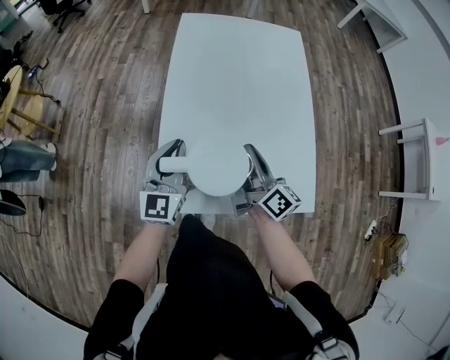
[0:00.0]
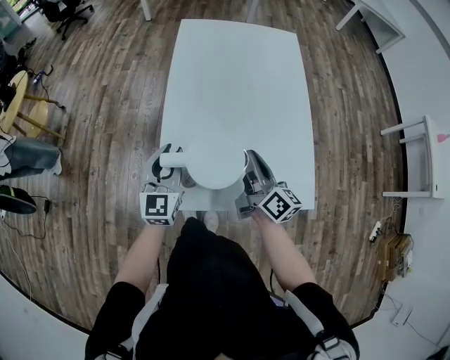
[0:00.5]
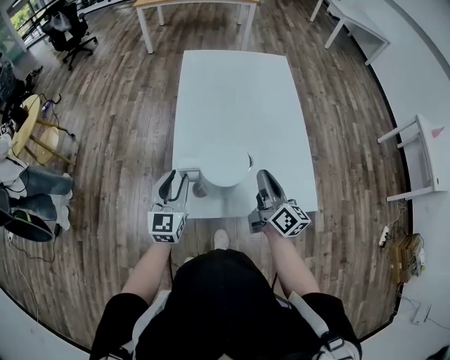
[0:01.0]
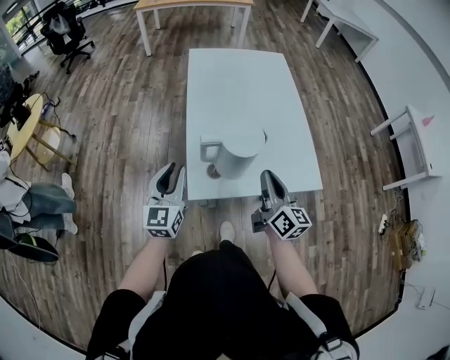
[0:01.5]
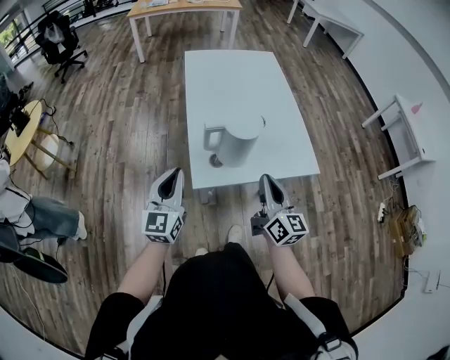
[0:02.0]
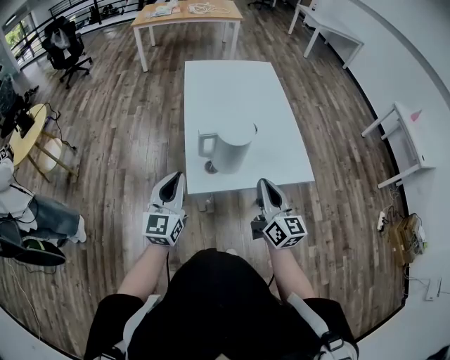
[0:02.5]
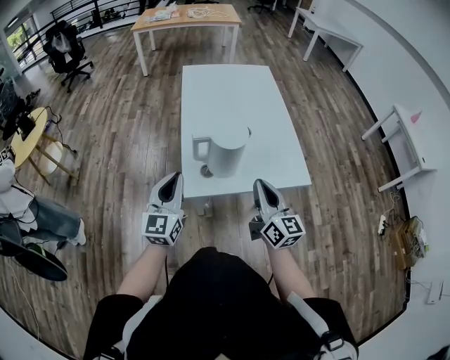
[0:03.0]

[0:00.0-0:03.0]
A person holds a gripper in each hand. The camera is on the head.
0:00.0 to 0:01.5: The left gripper ends up roughly 15 cm from where it was, and opens its fingers.
0:01.5 to 0:03.0: The left gripper ends up some 10 cm from where it was, and closes.

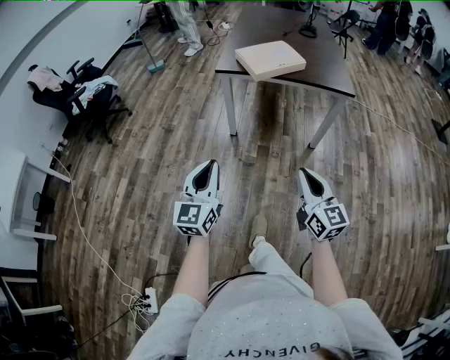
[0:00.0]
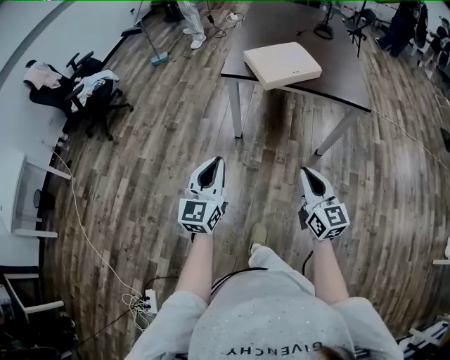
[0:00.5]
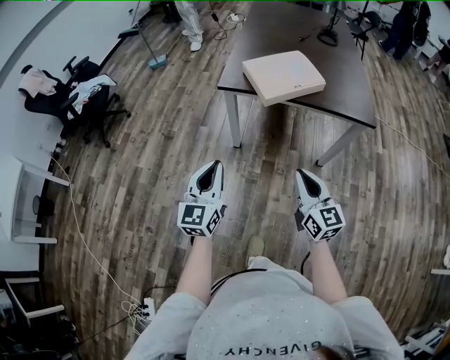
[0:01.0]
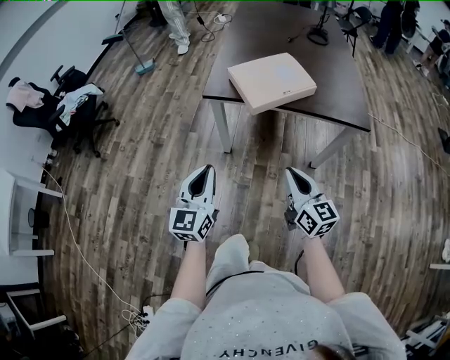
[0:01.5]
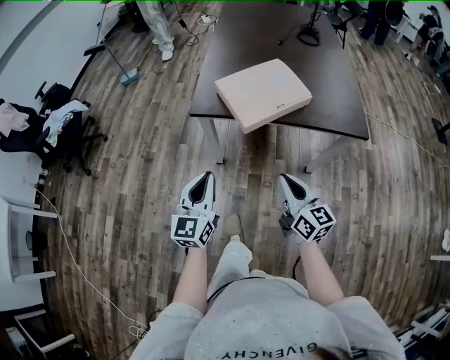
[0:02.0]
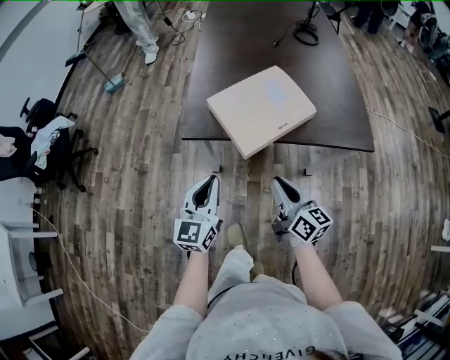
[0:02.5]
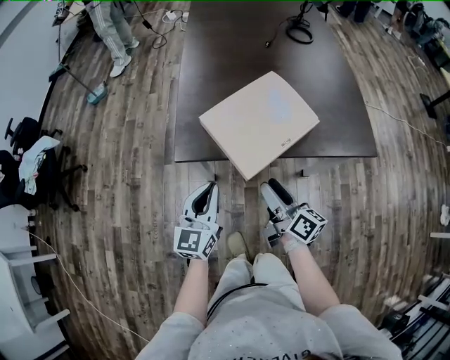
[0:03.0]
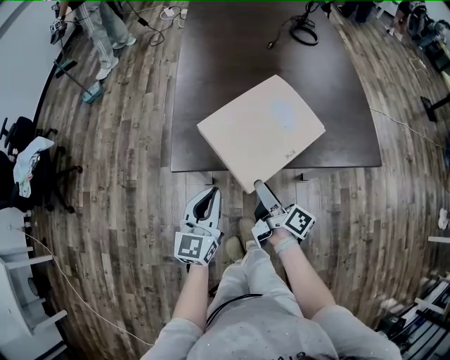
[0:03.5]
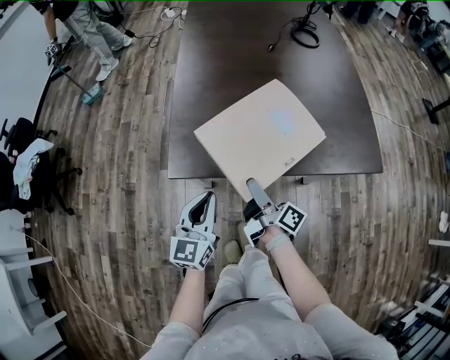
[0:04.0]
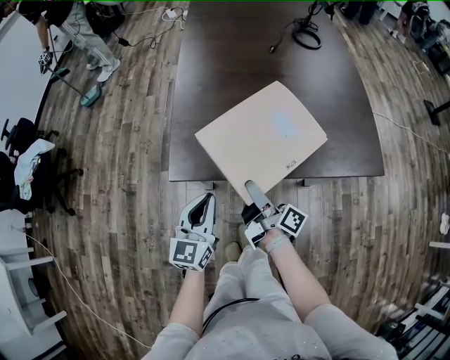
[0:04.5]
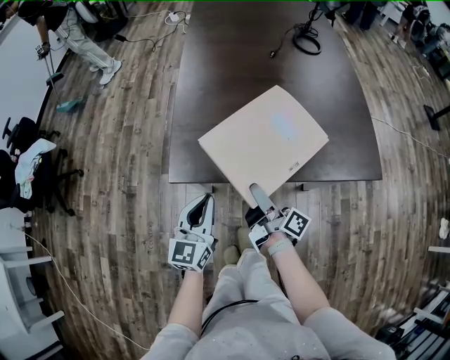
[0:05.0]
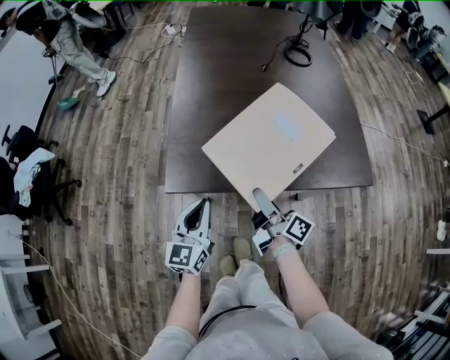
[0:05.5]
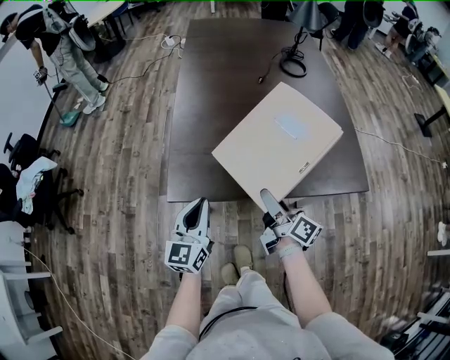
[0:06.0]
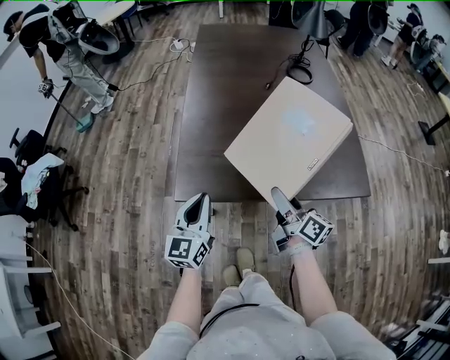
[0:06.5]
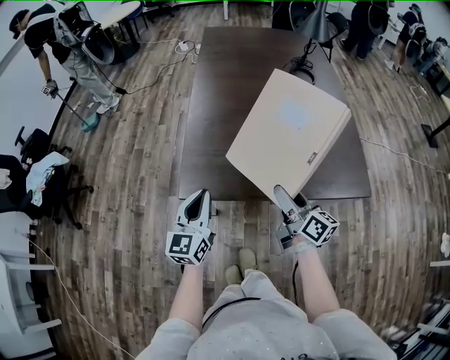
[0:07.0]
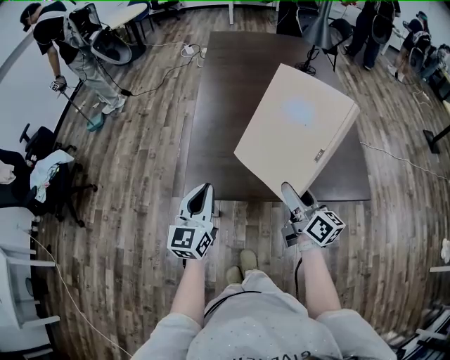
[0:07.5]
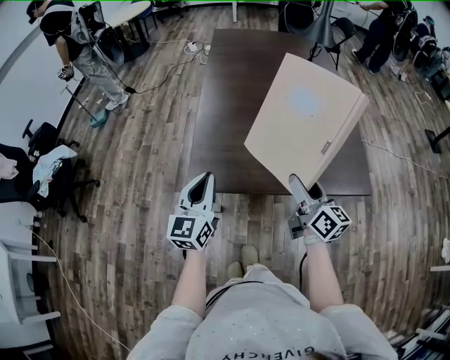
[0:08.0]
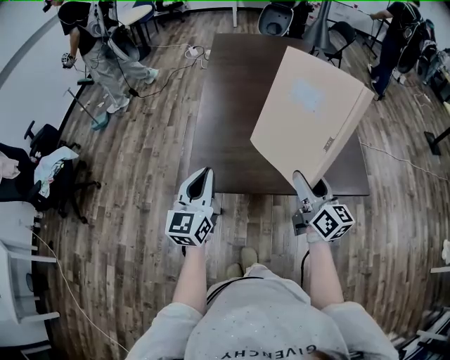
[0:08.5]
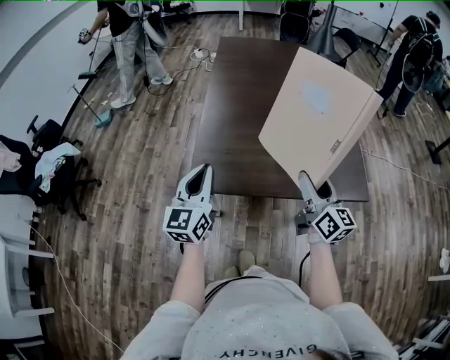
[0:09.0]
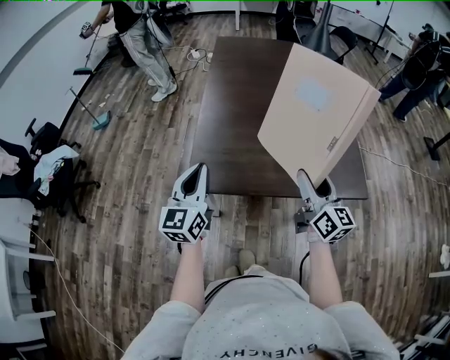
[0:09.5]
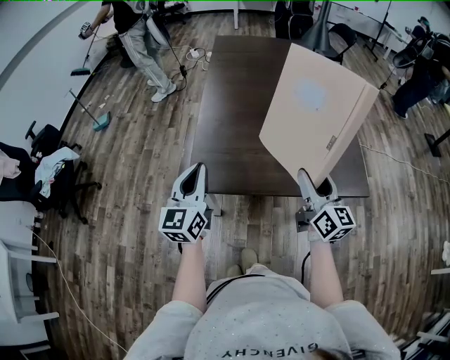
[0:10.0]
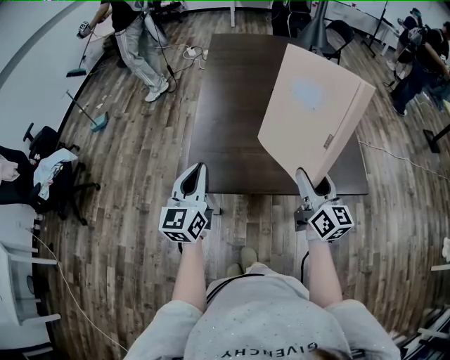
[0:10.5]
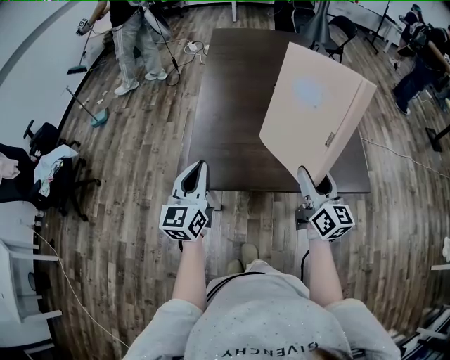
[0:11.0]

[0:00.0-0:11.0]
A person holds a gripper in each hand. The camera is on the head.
0:00.0 to 0:02.0: Both grippers are carried forward, roughly 40 cm.
0:02.0 to 0:03.5: The right gripper goes some 30 cm forward and downward, rotates around the line of its fingers by approximately 50 degrees, clockwise from behind, and opens; the left gripper moves forward, some 25 cm.
0:03.5 to 0:05.5: The right gripper shifts by some 5 cm, and closes up.
0:05.5 to 0:07.5: The right gripper shifts some 15 cm upward and to the right, and rotates about 30 degrees; the left gripper goes some 10 cm upward.
0:07.5 to 0:09.0: Both grippers move upward, roughly 5 cm.
0:09.0 to 0:11.0: The grippers stay close to where they were, moving slightly.

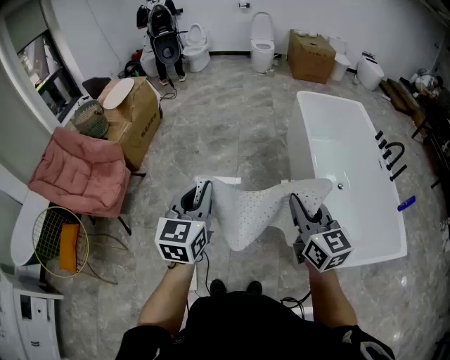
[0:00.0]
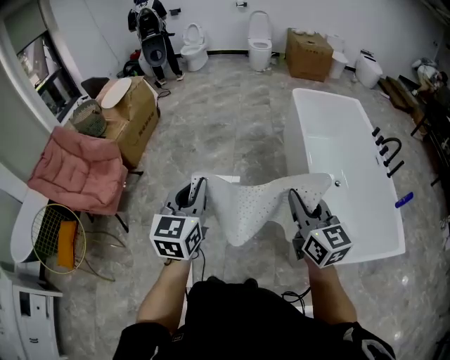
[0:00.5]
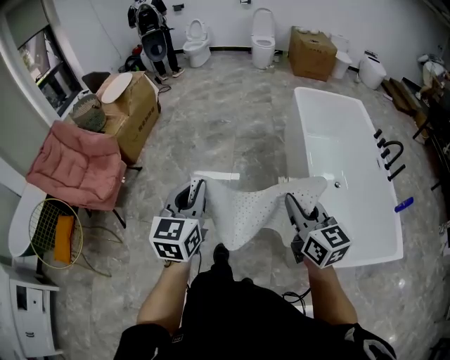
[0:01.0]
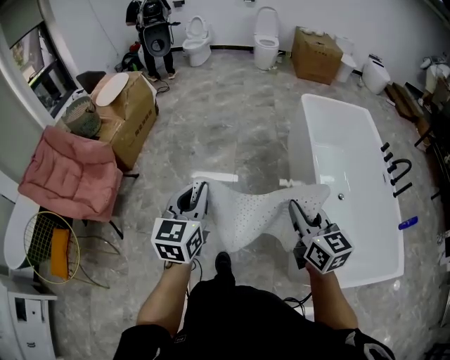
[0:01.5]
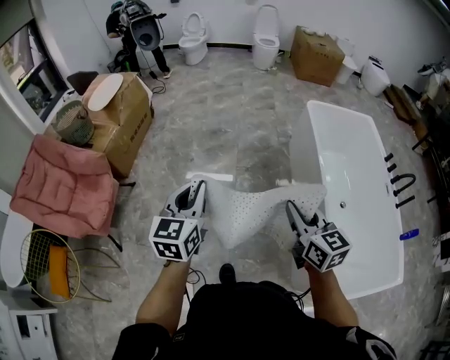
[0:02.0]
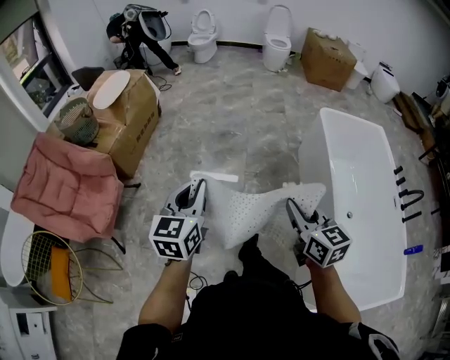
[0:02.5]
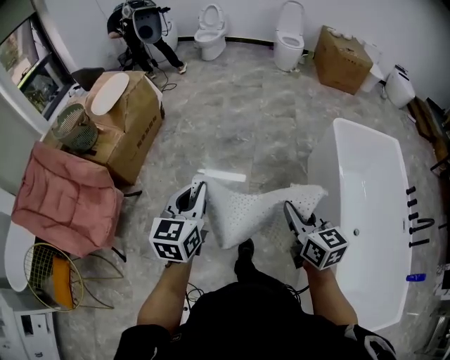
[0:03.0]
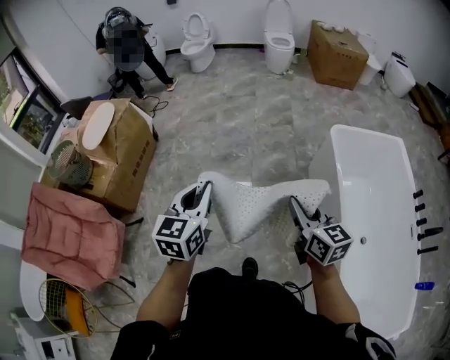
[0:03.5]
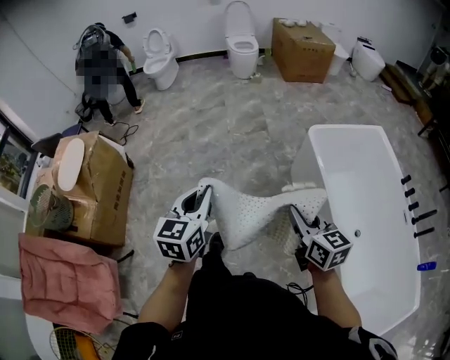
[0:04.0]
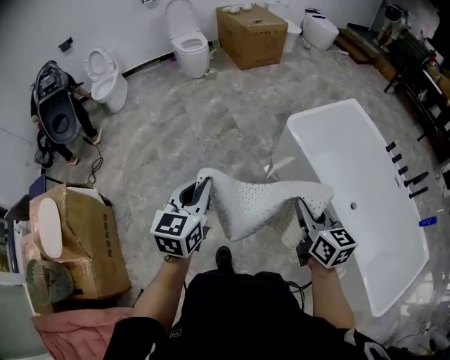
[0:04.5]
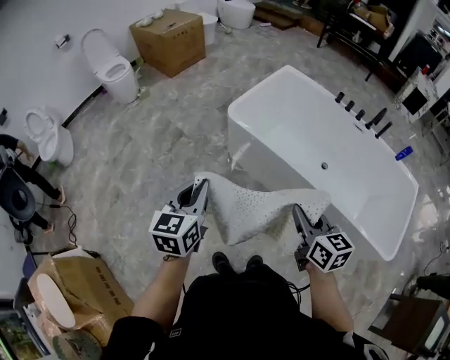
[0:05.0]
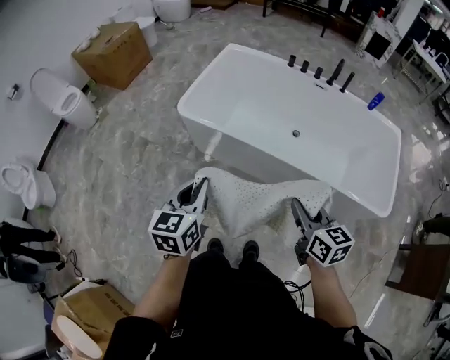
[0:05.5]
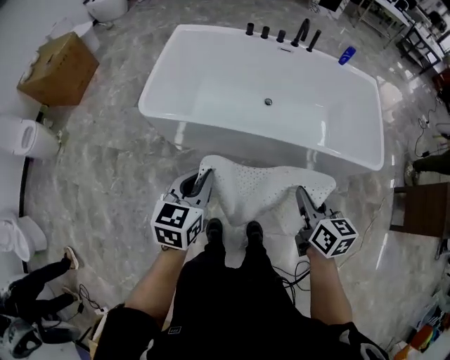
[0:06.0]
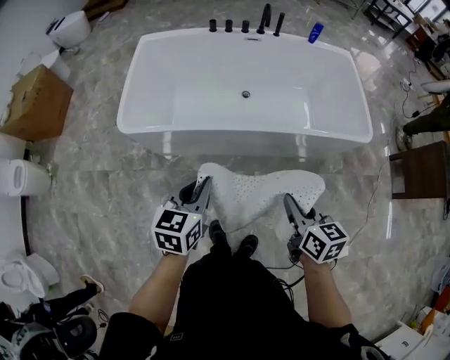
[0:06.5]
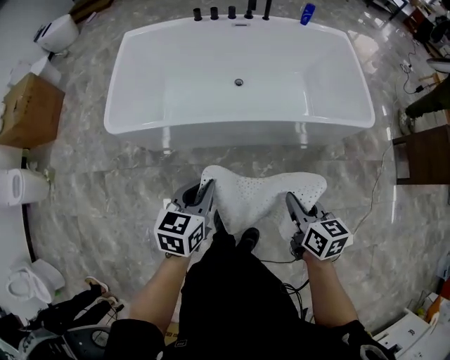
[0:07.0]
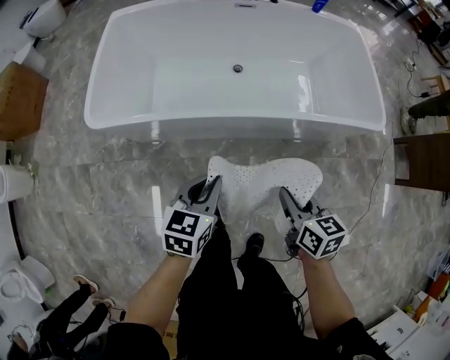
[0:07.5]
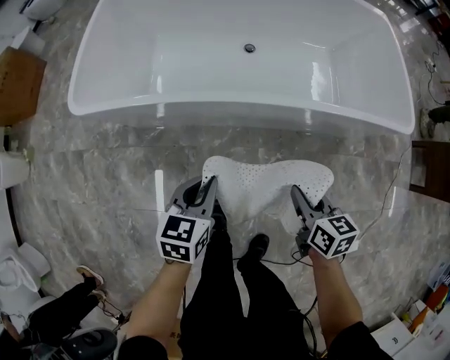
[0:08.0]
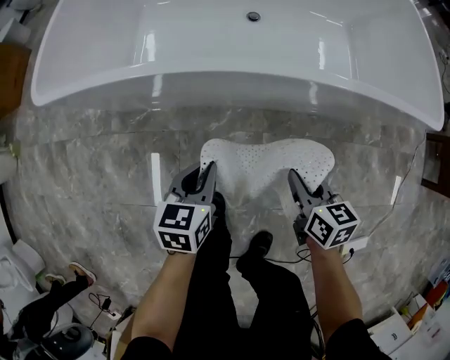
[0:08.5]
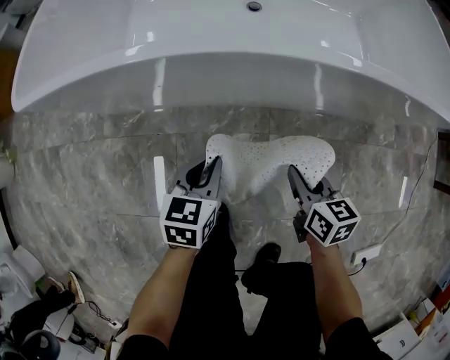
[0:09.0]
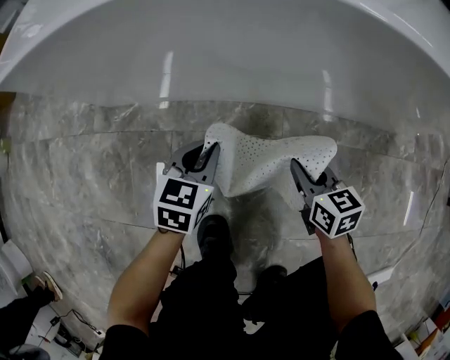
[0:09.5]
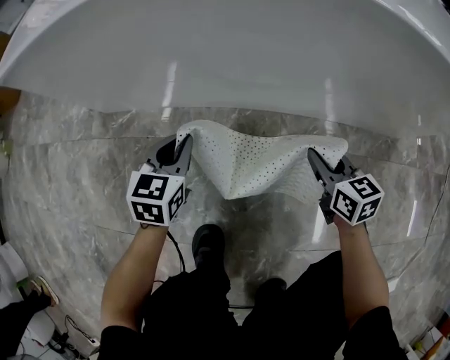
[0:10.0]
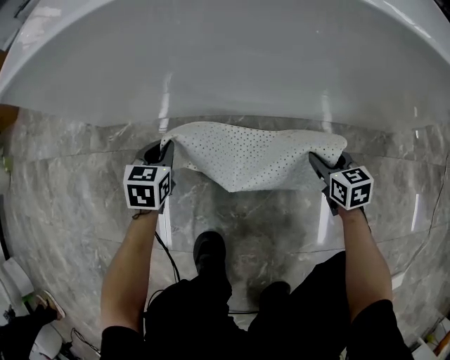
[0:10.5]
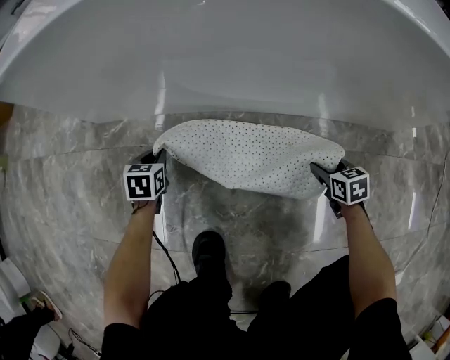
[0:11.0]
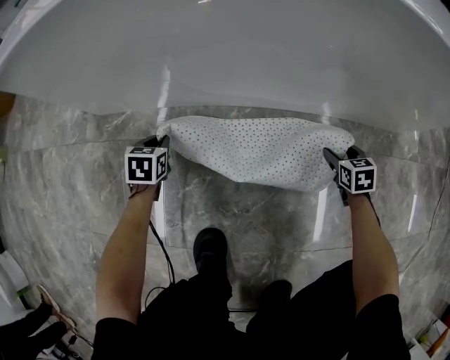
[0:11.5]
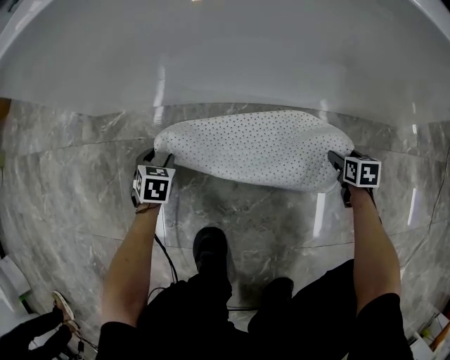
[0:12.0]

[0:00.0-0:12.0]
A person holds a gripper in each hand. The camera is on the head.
0:00.0 to 0:02.0: Both grippers move forward, some 25 cm.
0:02.0 to 0:04.0: The pair of grippers is taken forward, approximately 50 cm.
0:04.0 to 0:06.0: The left gripper shifts by roughly 35 cm, and changes its angle by roughly 80 degrees, while the right gripper shifts by about 20 cm, and changes its angle by about 80 degrees.
0:06.0 to 0:08.0: Both grippers move downward, some 30 cm.
0:08.0 to 0:10.0: Both grippers move downward, about 40 cm.
0:10.0 to 0:12.0: The left gripper is displaced downward and to the left by approximately 20 cm, swivels some 30 degrees, and opens up, while the right gripper travels downward and to the right by roughly 25 cm, swivels about 40 degrees, and opens its fingers.

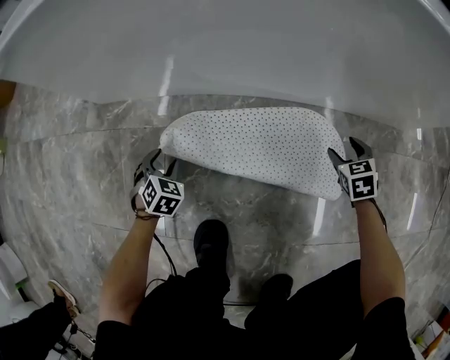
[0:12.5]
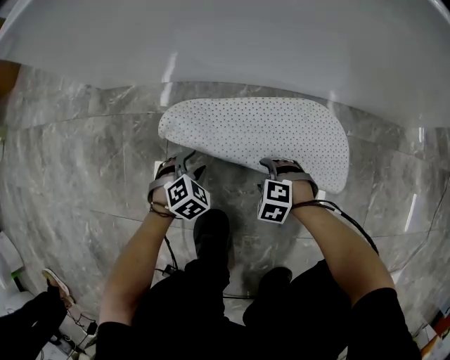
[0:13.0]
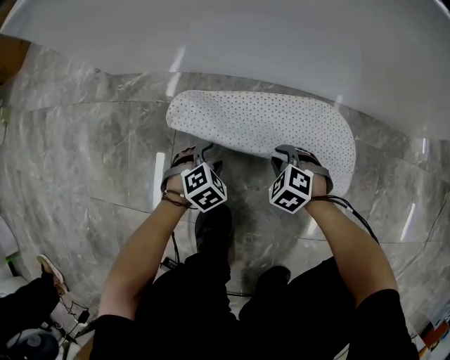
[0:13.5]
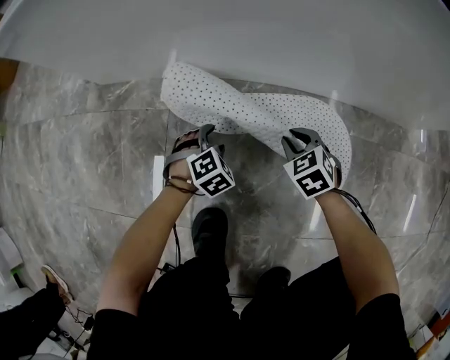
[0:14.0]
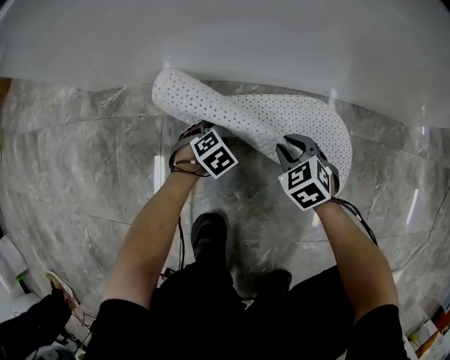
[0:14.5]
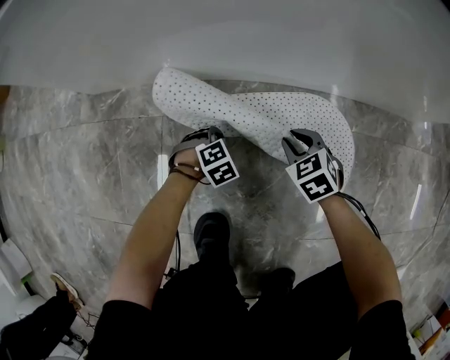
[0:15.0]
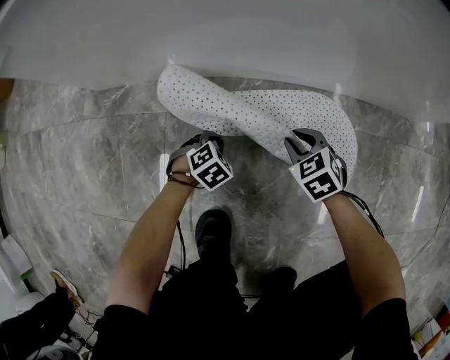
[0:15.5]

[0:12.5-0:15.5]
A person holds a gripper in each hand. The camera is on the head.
0:12.5 to 0:14.0: The right gripper reaches about 10 cm downward, then returns, turns by roughly 20 degrees, and closes its fingers; the left gripper changes place by some 15 cm, and rotates approximately 20 degrees.
0:14.0 to 0:15.5: The left gripper closes its fingers.
